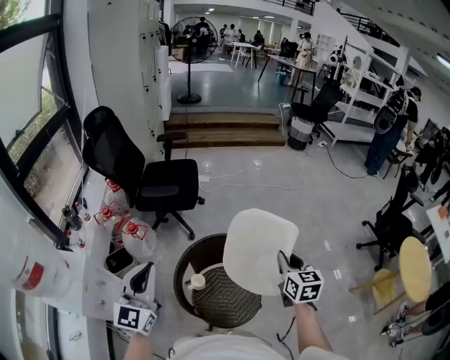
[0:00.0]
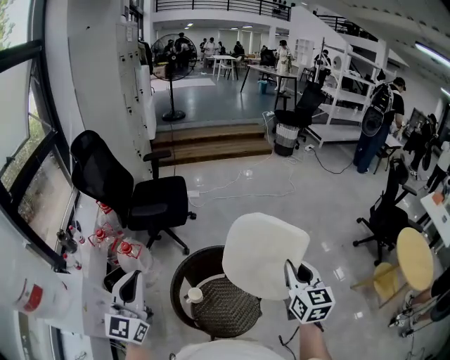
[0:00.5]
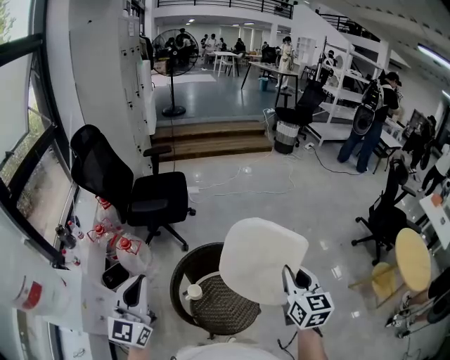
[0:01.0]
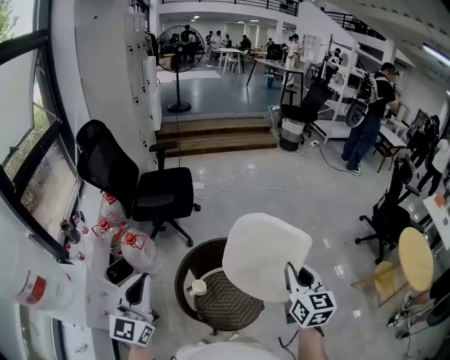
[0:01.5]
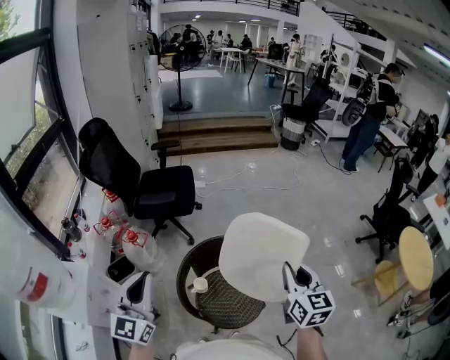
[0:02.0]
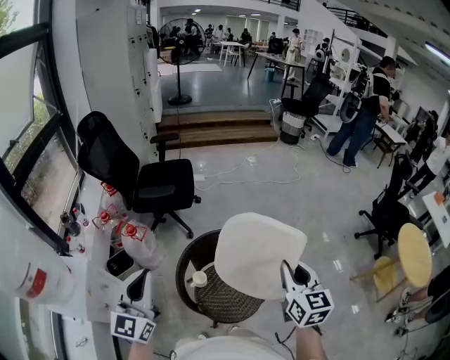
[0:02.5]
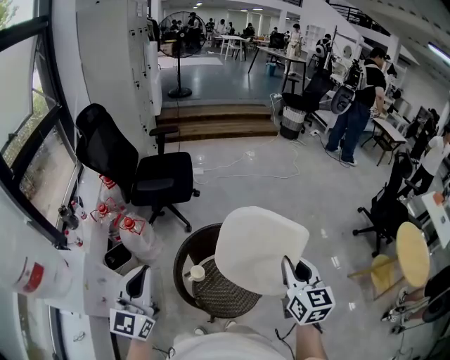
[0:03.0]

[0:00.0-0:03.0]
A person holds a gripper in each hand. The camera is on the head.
0:00.0 to 0:01.5: The right gripper is displaced backward and upward by roughly 10 cm.
0:01.5 to 0:03.0: The grippers move only a little.

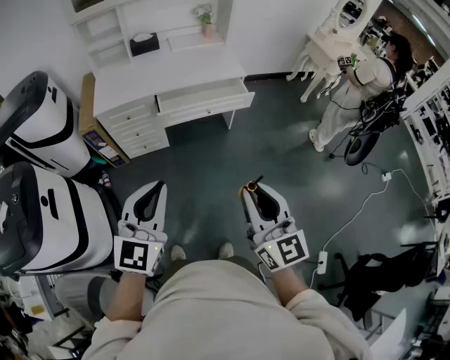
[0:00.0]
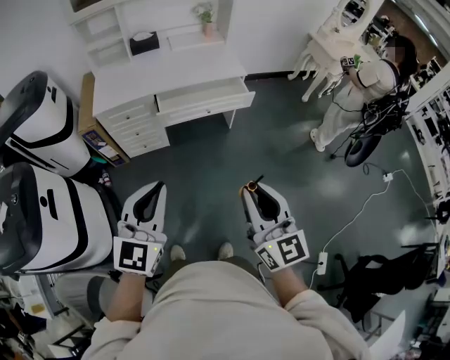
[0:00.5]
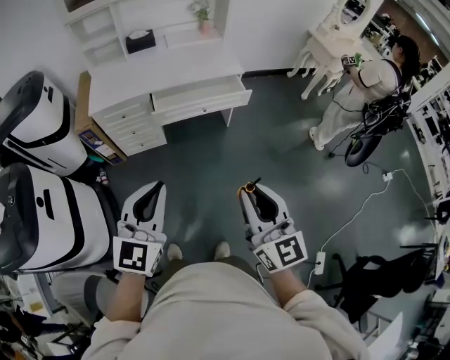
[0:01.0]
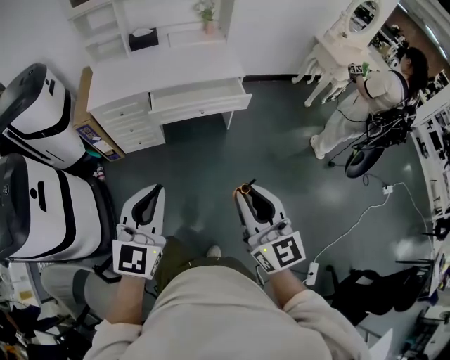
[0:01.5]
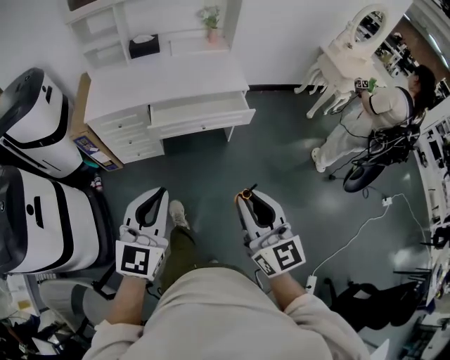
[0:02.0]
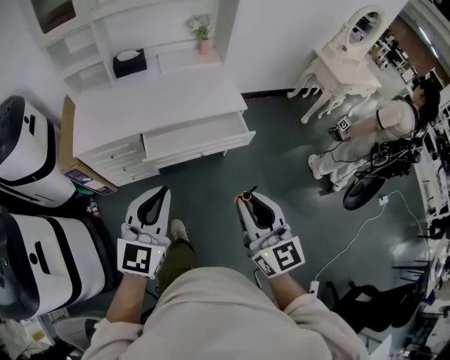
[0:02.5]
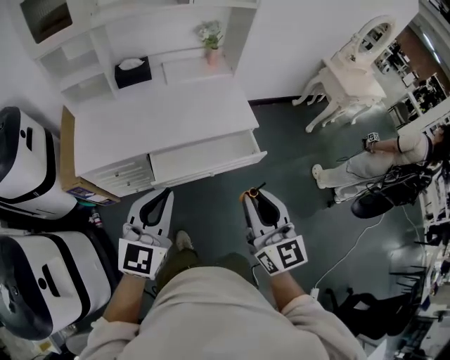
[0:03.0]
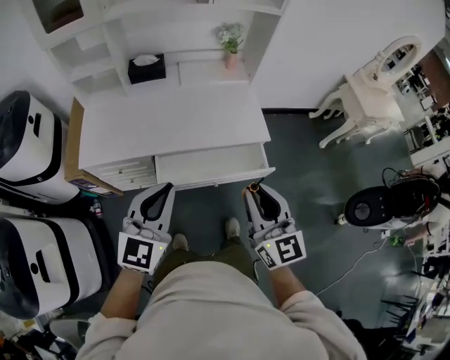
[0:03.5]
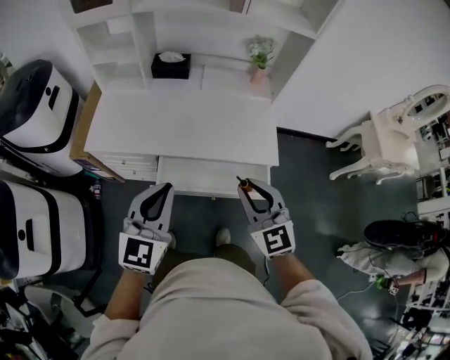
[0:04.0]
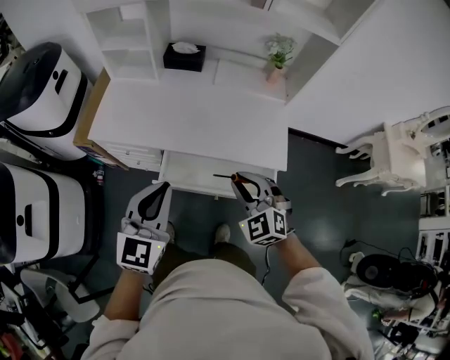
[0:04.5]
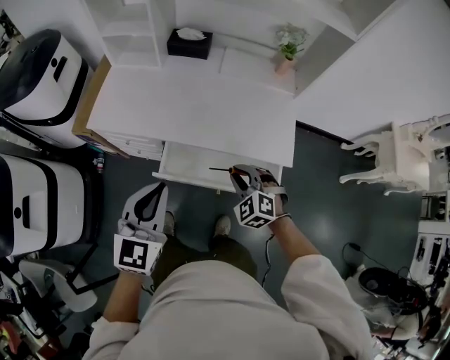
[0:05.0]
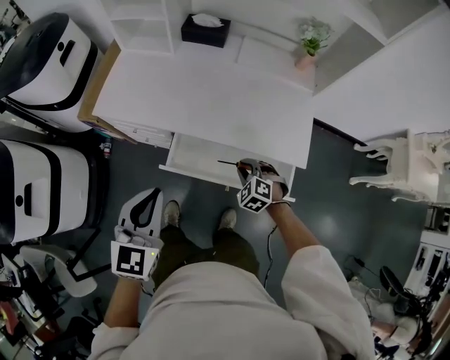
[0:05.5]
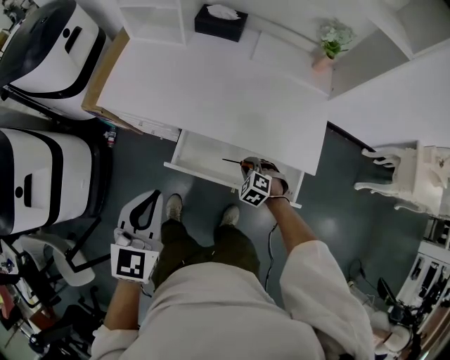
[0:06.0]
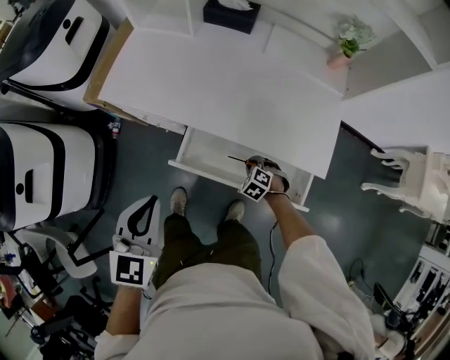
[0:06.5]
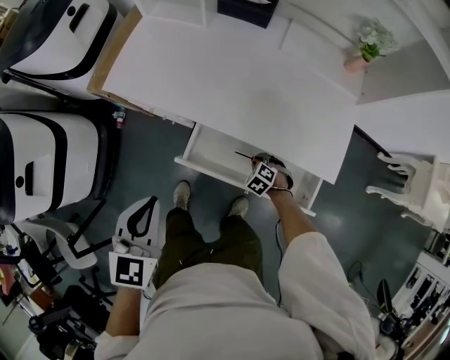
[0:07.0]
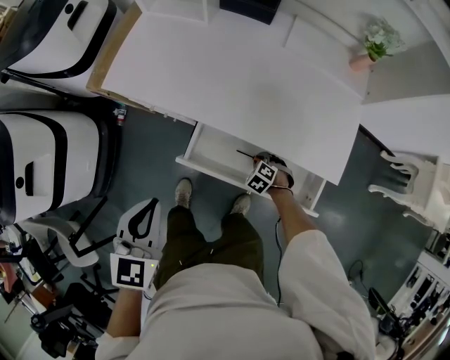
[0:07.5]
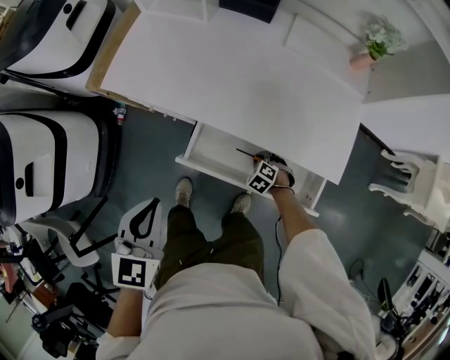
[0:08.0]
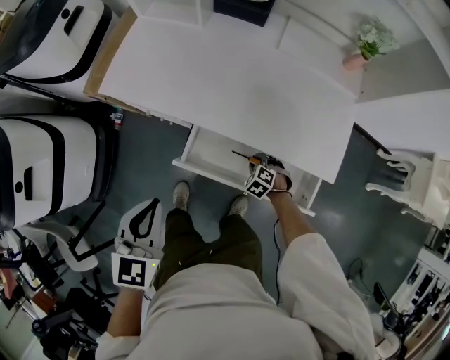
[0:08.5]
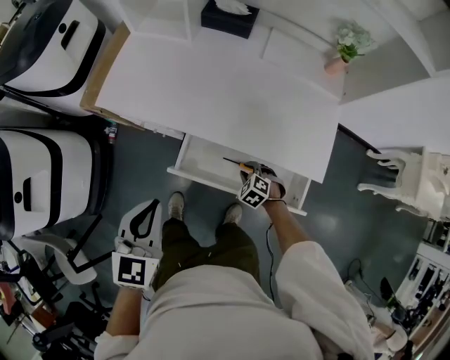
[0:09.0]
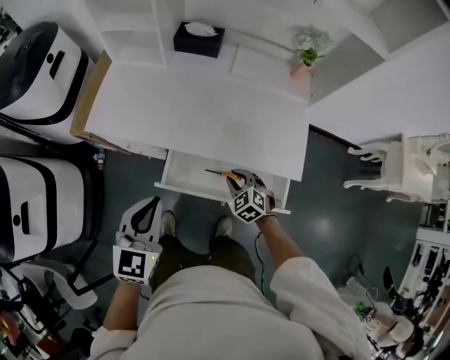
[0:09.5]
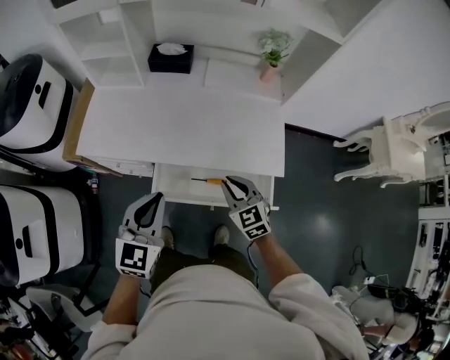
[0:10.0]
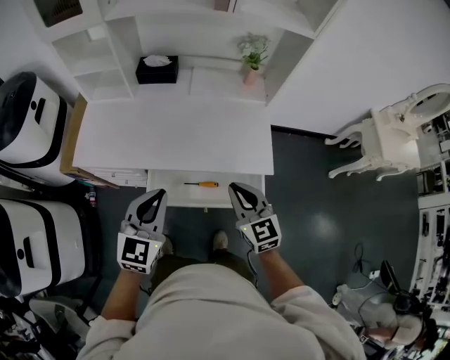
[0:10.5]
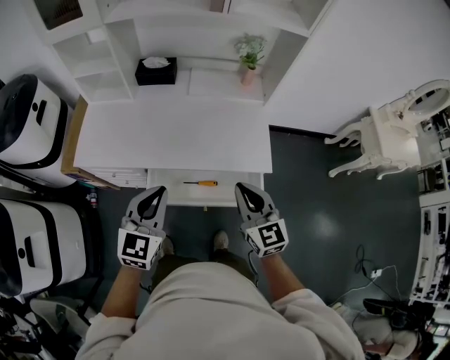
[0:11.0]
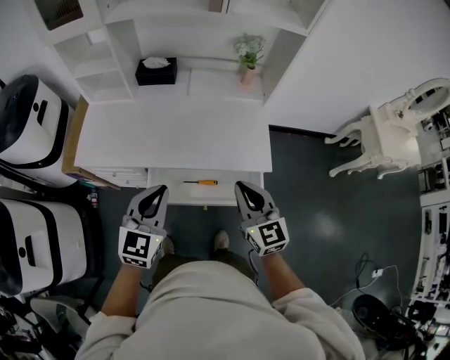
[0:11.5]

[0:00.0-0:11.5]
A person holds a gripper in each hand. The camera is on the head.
0:00.0 to 0:02.0: Both grippers move forward and to the right, approximately 15 cm.
0:02.0 to 0:04.0: Both grippers move forward, some 40 cm. The right gripper rotates roughly 30 degrees.
0:04.0 to 0:06.0: The left gripper goes about 10 cm downward and to the left, and turns by approximately 20 degrees. The right gripper travels downward by roughly 40 cm, and points its fingers some 50 degrees further downward.
0:06.0 to 0:07.5: The right gripper shifts about 15 cm downward. Meanwhile the left gripper heads downward, covering some 5 cm.
0:07.5 to 0:09.5: The left gripper shifts by some 10 cm, while the right gripper goes some 20 cm upward, and turns by approximately 30 degrees.
0:09.5 to 0:11.5: The right gripper heads upward, covering about 25 cm, tilts its fingers about 40 degrees upward, and closes up; the left gripper moves to the right and upward, some 10 cm.

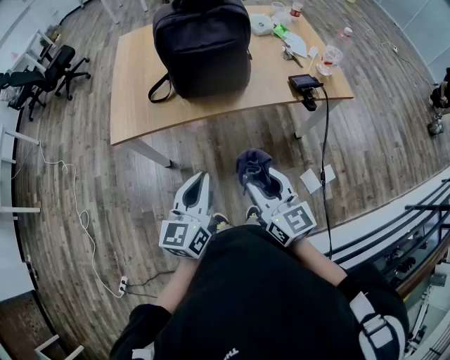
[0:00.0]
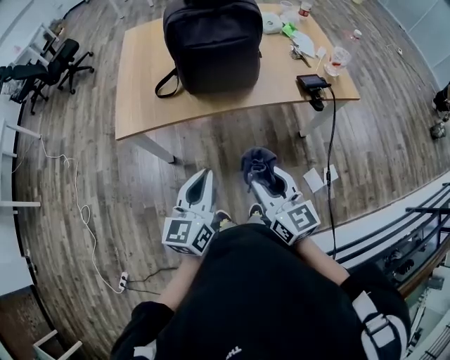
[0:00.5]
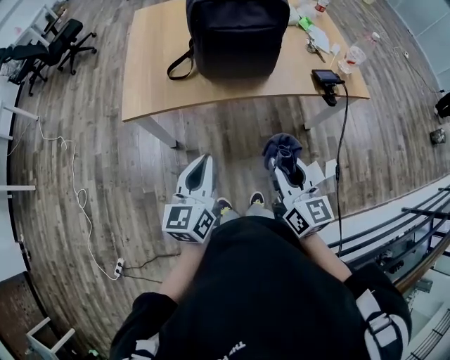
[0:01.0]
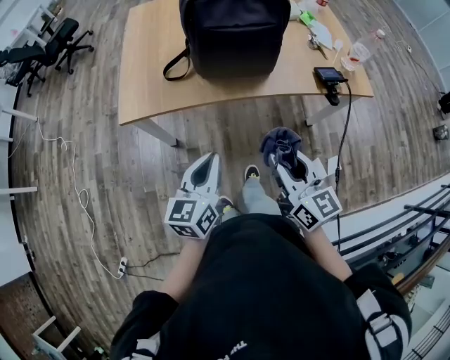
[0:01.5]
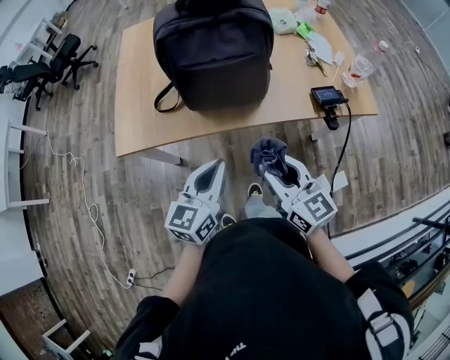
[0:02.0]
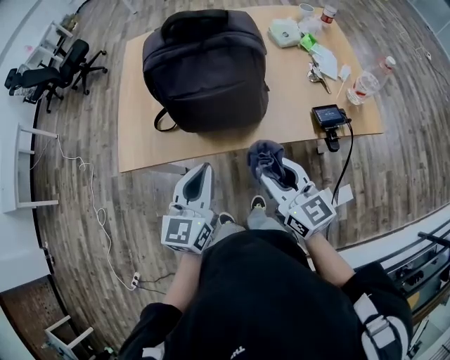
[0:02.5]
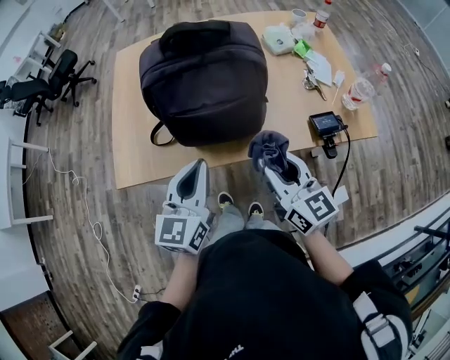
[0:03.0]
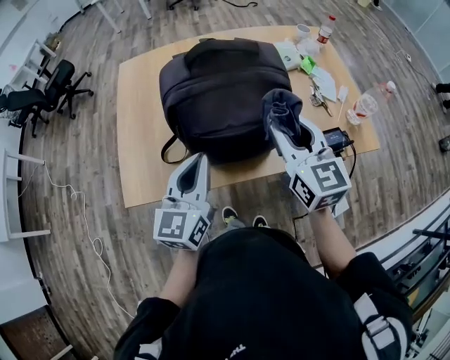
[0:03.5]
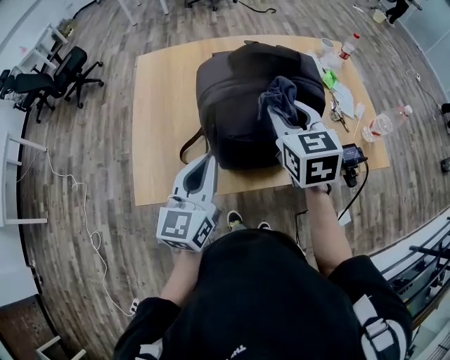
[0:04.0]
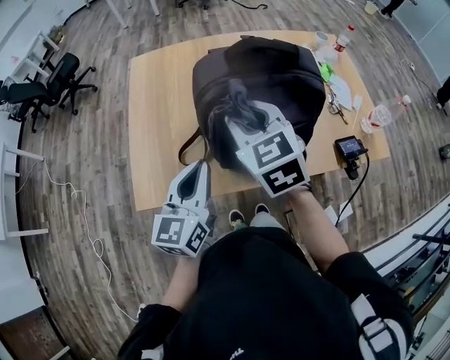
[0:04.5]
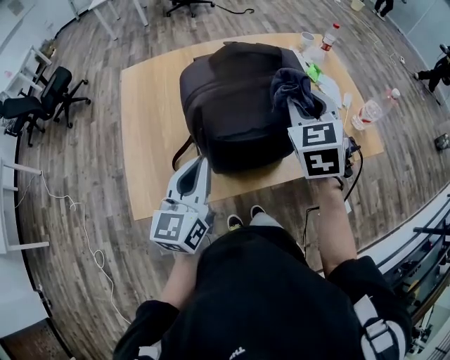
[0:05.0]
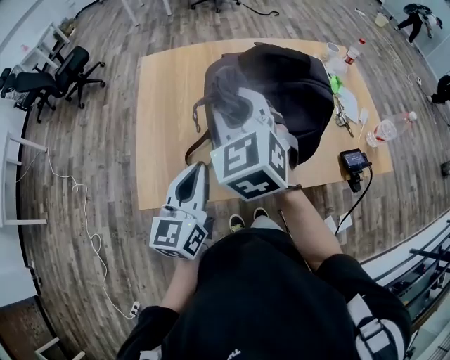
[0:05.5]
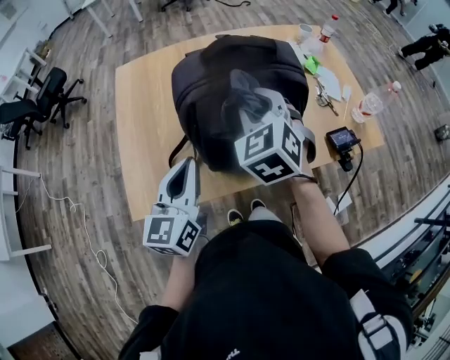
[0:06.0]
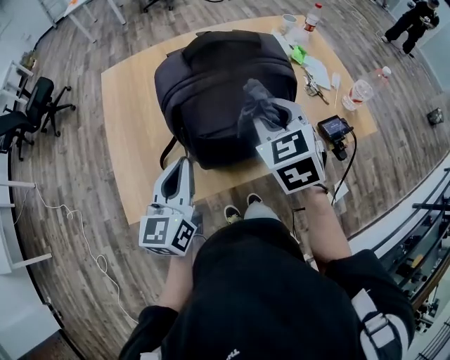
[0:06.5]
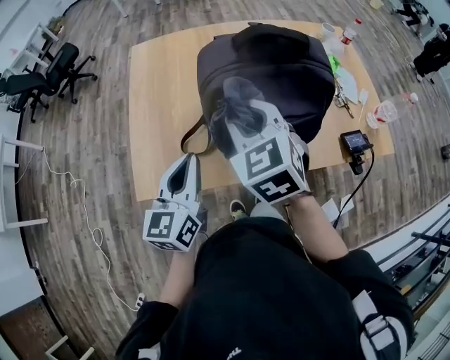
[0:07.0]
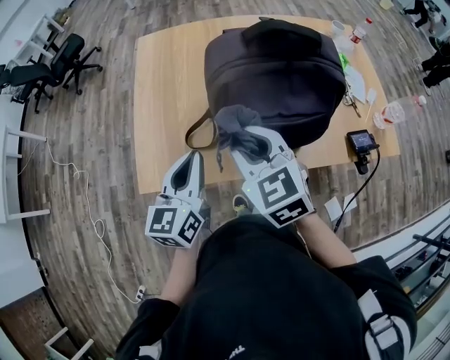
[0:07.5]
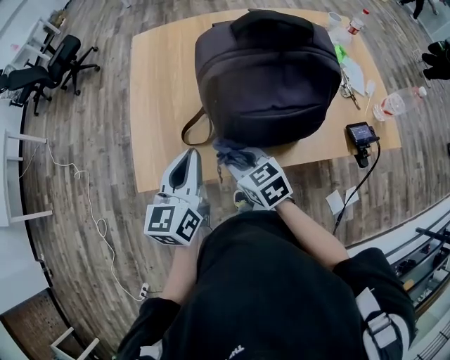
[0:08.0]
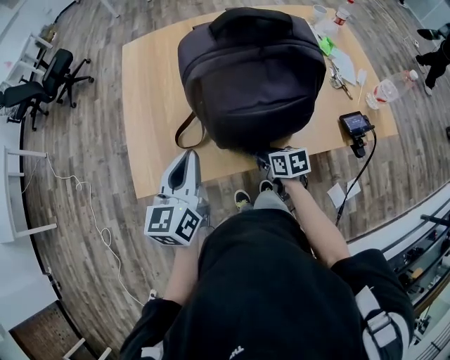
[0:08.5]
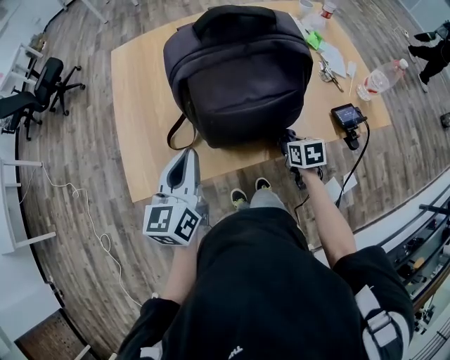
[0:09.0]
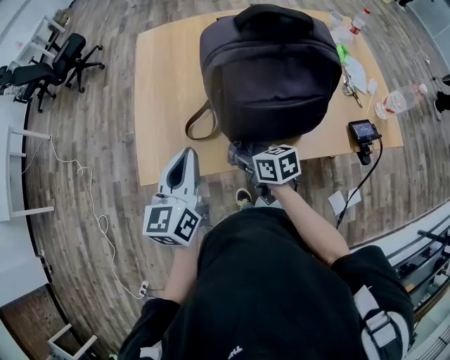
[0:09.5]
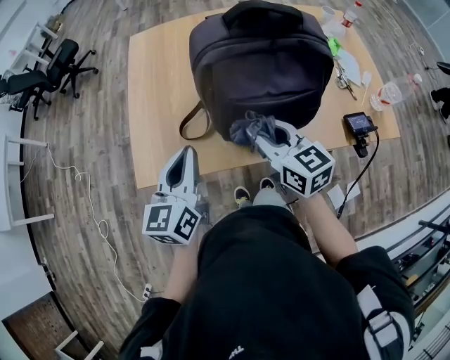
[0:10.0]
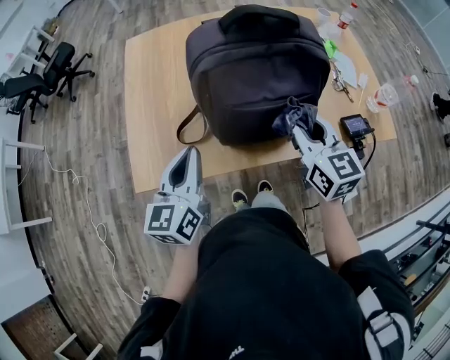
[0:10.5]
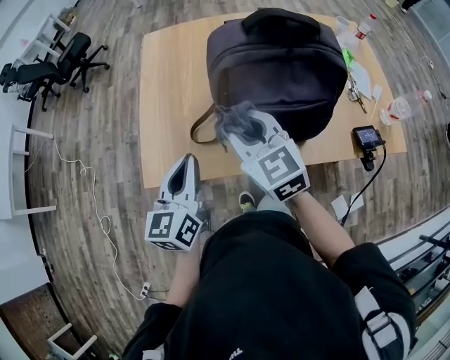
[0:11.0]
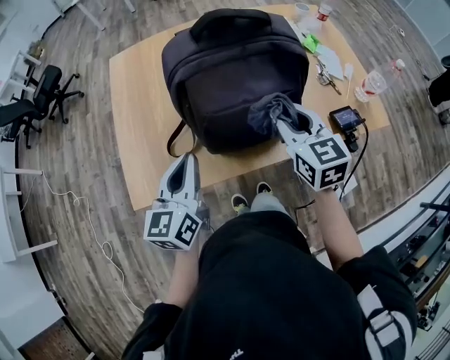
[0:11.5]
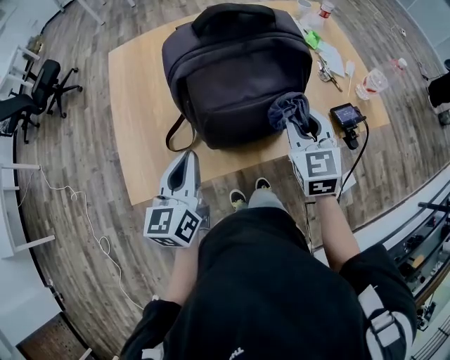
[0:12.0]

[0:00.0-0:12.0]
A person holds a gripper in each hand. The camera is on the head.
0:00.0 to 0:02.0: Both grippers travel together forward, approximately 15 cm.
0:02.0 to 0:04.0: The right gripper heads forward, covering roughly 30 cm, and changes its angle by some 30 degrees. Meanwhile the left gripper is displaced forward and to the left by approximately 25 cm.
0:04.0 to 0:06.0: The right gripper goes left and right, roughly 20 cm each way, reversing 3 times, and changes its angle by roughly 30 degrees.
0:06.0 to 0:08.0: The left gripper moves some 5 cm. Meanwhile the right gripper shifts approximately 20 cm downward, and changes its angle by about 50 degrees.
0:08.0 to 0:10.0: The right gripper moves left and right over approximately 25 cm, changing direction 2 times, and turns by approximately 20 degrees.
0:10.0 to 0:12.0: The right gripper goes left and right, approximately 20 cm each way, reversing 2 times, and turns by about 40 degrees.
